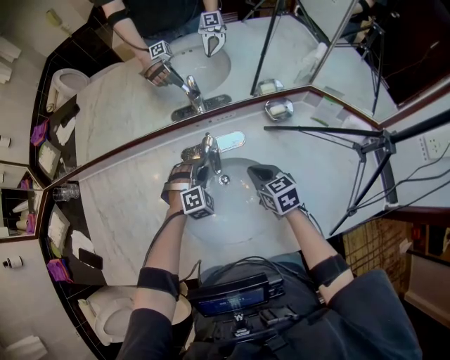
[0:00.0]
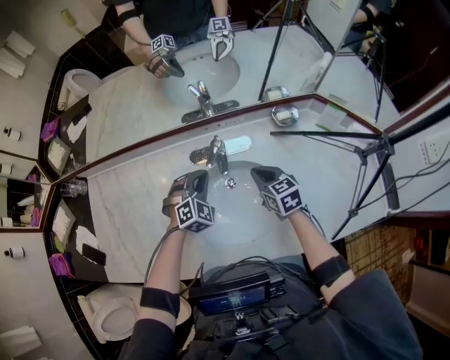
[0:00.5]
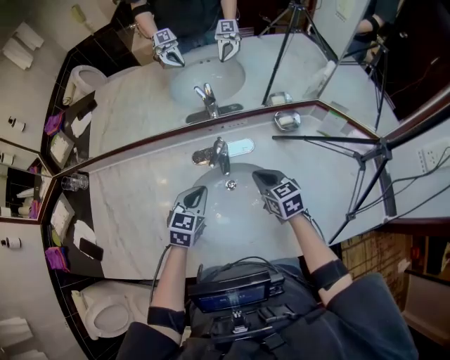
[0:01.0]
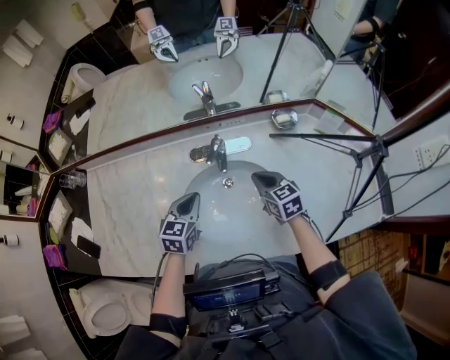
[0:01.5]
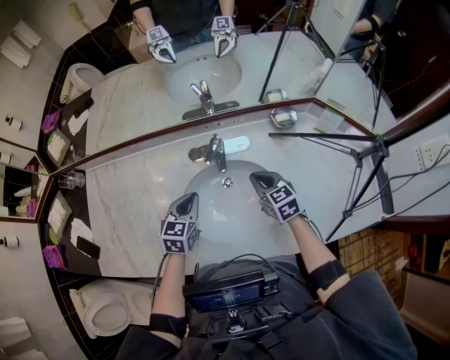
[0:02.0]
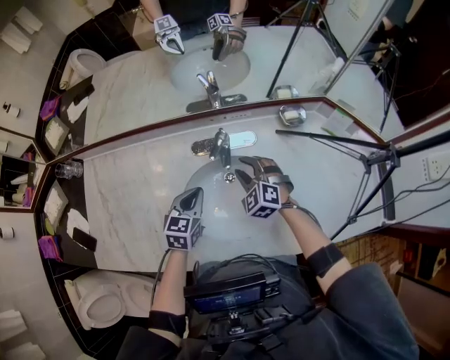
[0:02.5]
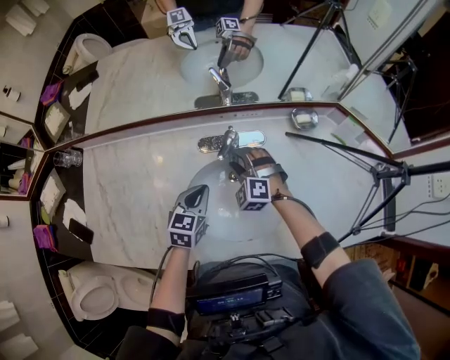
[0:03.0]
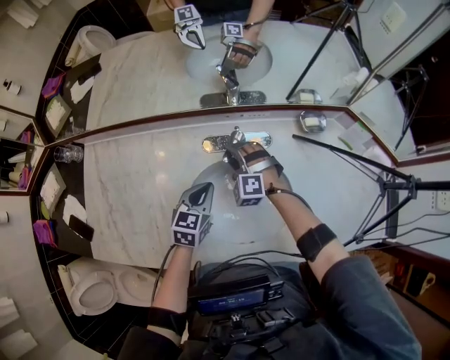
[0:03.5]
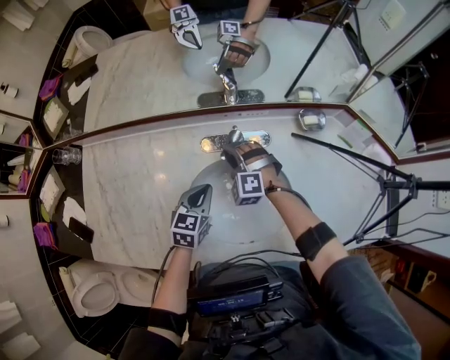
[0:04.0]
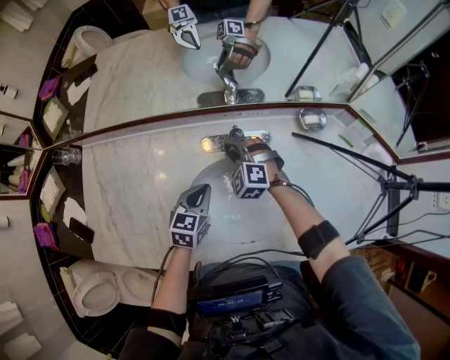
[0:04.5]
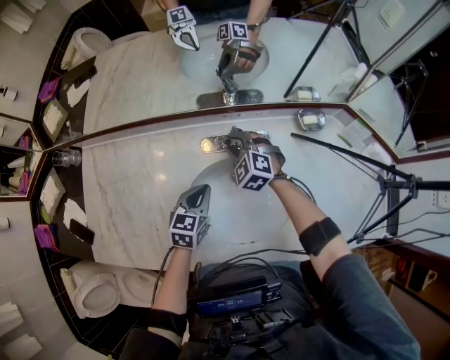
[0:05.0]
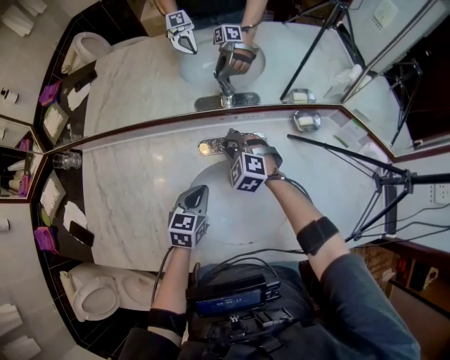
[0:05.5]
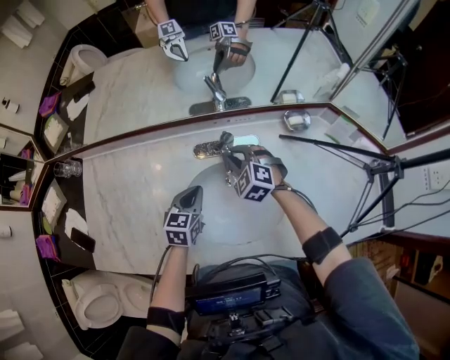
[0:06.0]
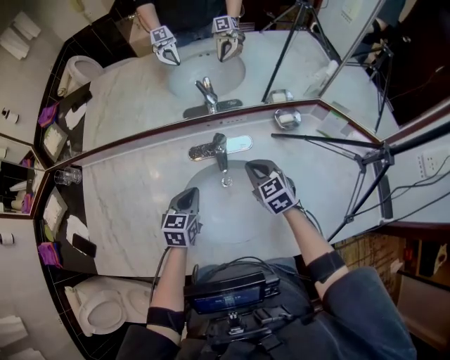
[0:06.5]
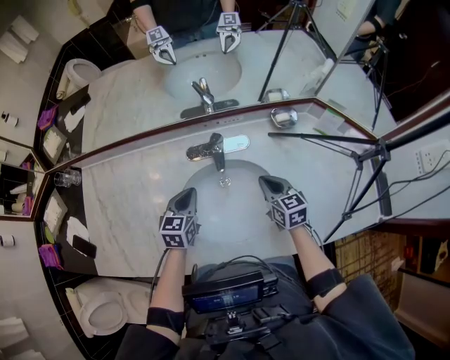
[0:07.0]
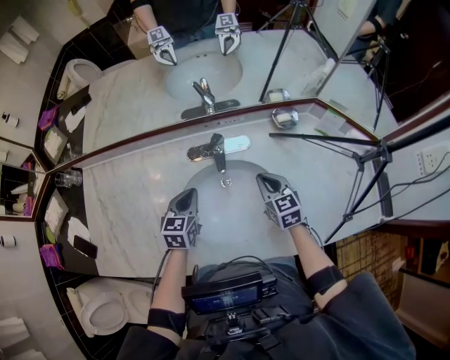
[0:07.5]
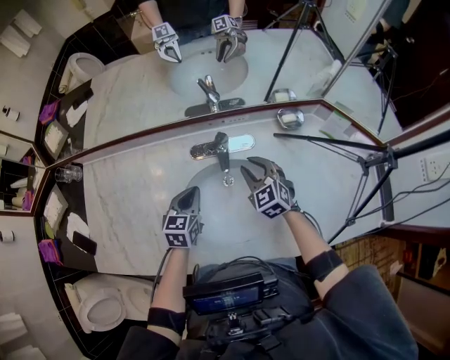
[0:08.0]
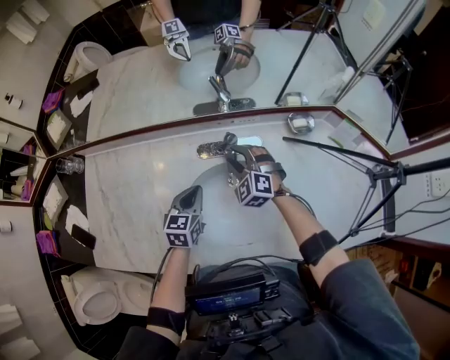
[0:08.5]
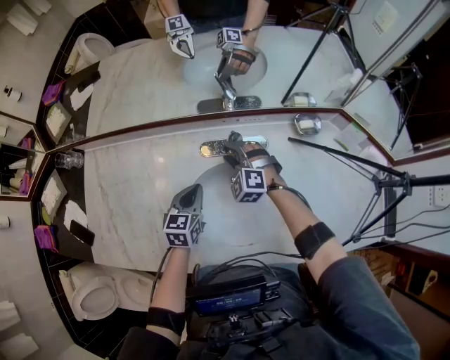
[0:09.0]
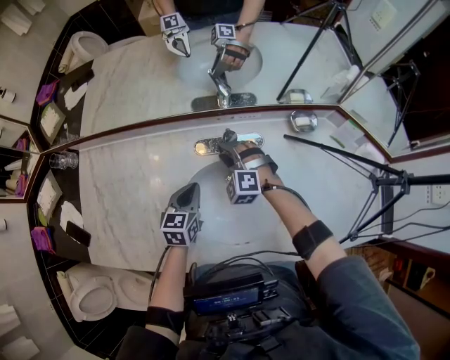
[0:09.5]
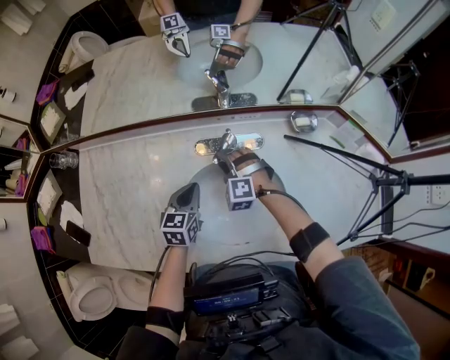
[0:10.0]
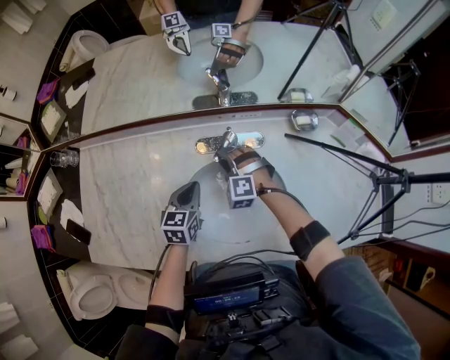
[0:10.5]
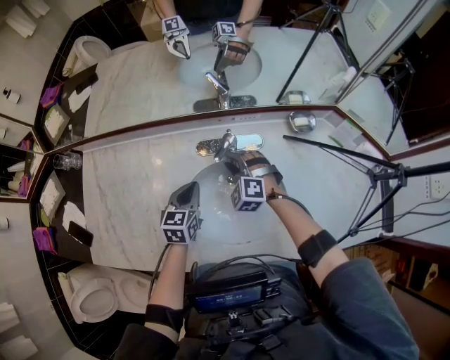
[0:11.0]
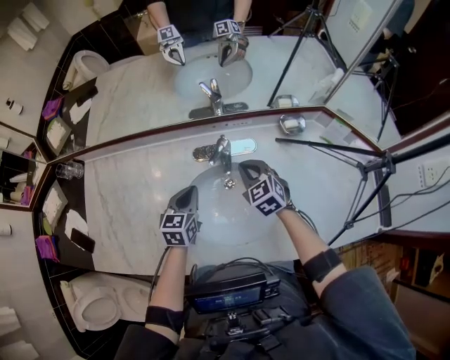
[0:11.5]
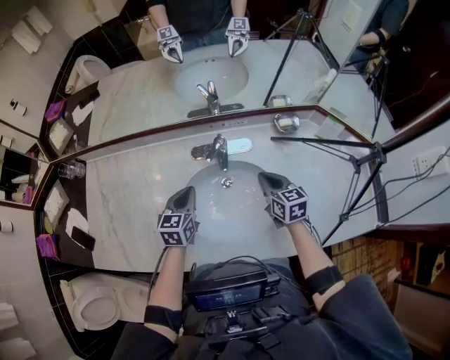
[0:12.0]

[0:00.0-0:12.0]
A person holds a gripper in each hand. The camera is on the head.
0:00.0 to 0:02.0: The left gripper moves backward, upward and to the left, about 15 cm, rotates around the line of its fingers by some 70 degrees, counterclockwise from behind, and closes.
0:02.0 to 0:04.0: The left gripper moves some 5 cm. Meanwhile the right gripper heads to the left and forward, covering roughly 20 cm, twists roughly 70 degrees counterclockwise, seen from behind, and opens its fingers.
0:04.0 to 0:06.0: The right gripper changes place by roughly 5 cm, and rotates some 20 degrees.
0:06.0 to 0:08.0: The right gripper shifts some 5 cm to the right, and swivels approximately 20 degrees.
0:08.0 to 0:10.0: The right gripper moves to the left and downward, approximately 15 cm, and rolls counterclockwise, seen from behind, by some 50 degrees.
0:10.0 to 0:12.0: The right gripper heads to the right, backward and upward, covering approximately 20 cm, twists some 80 degrees clockwise, seen from behind, and closes its fingers, while the left gripper changes place by some 5 cm.

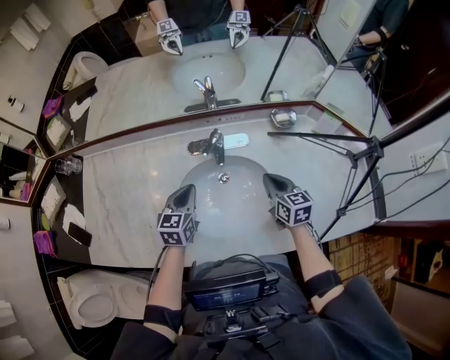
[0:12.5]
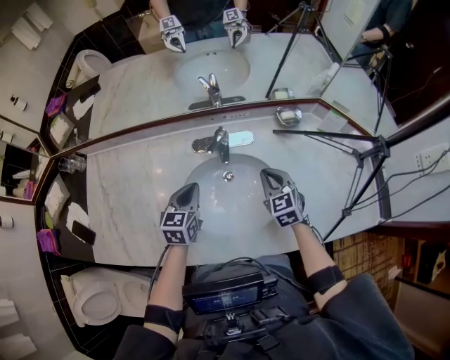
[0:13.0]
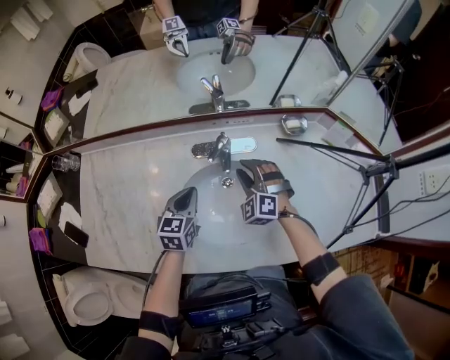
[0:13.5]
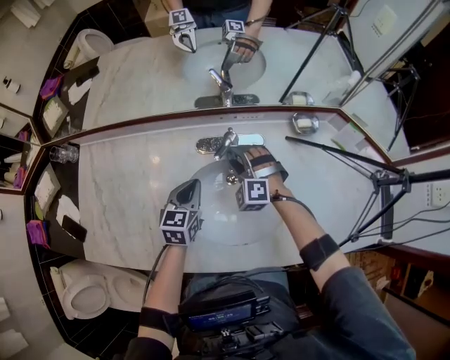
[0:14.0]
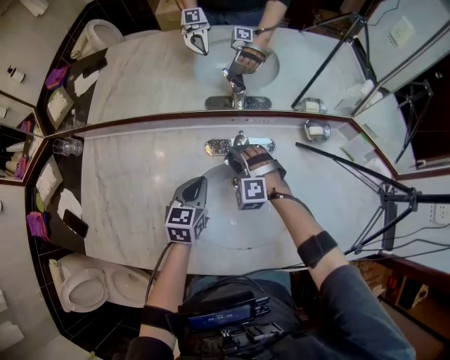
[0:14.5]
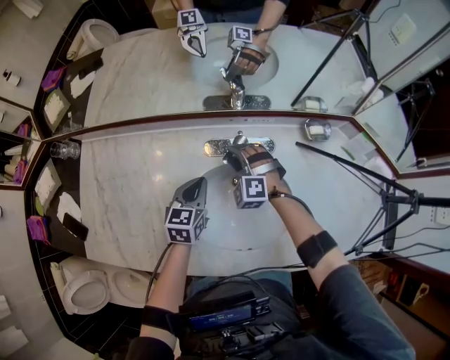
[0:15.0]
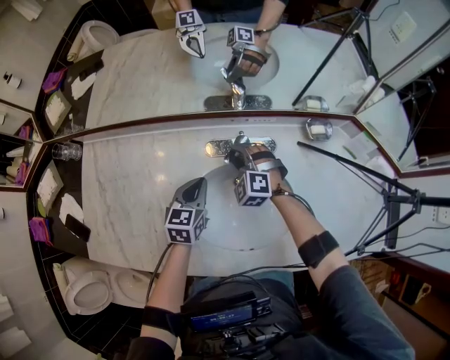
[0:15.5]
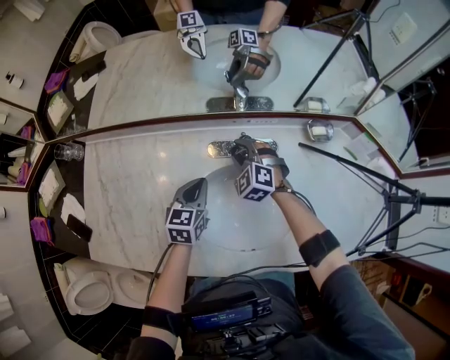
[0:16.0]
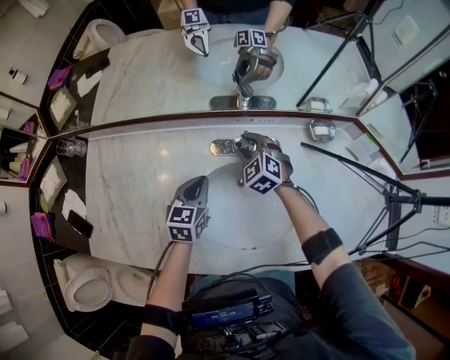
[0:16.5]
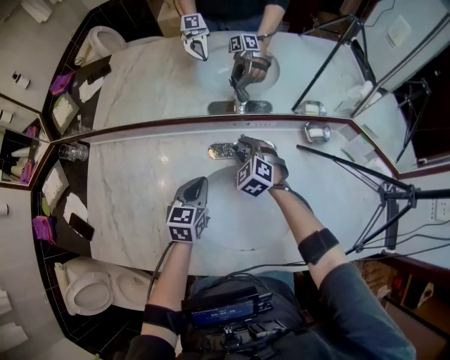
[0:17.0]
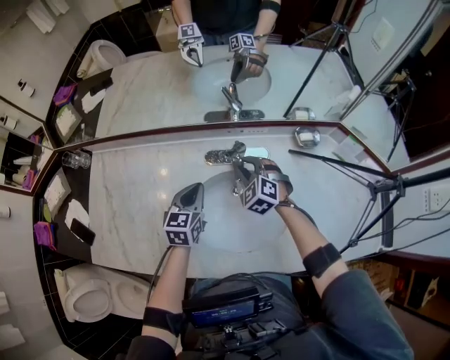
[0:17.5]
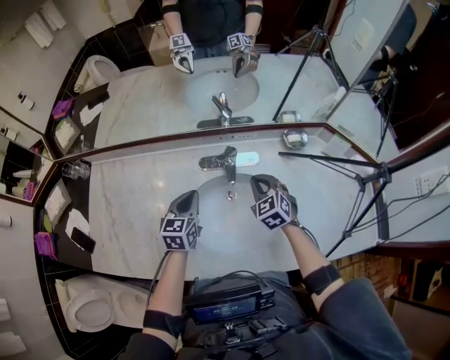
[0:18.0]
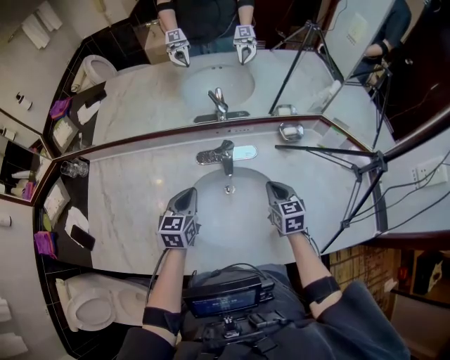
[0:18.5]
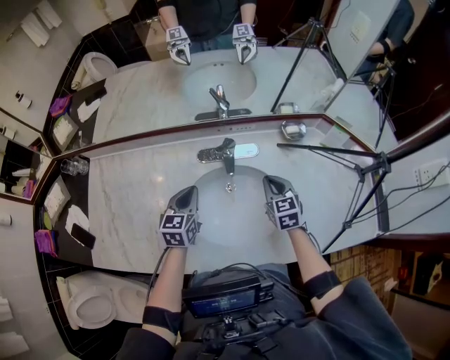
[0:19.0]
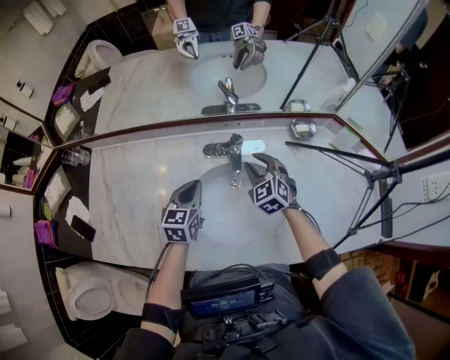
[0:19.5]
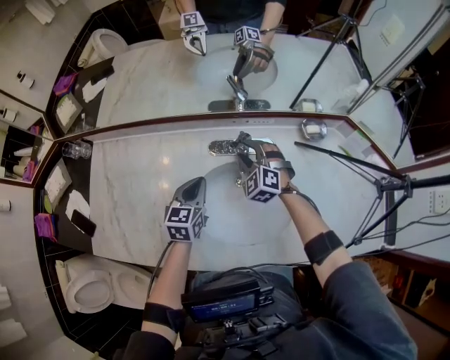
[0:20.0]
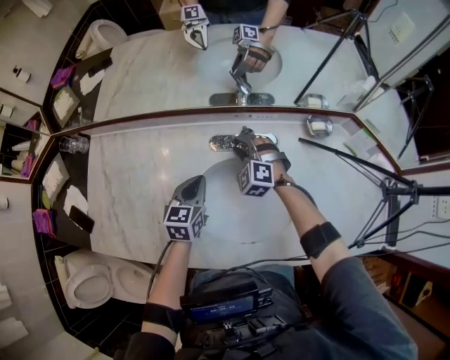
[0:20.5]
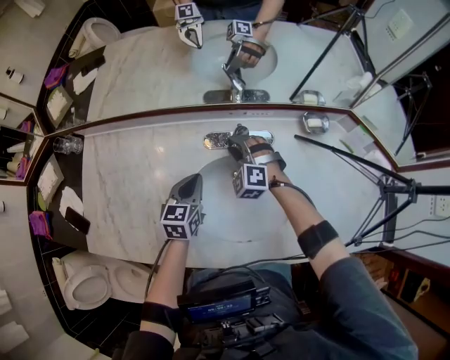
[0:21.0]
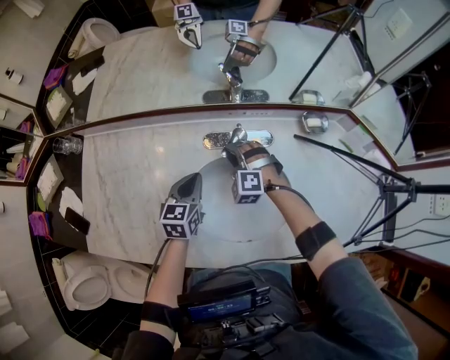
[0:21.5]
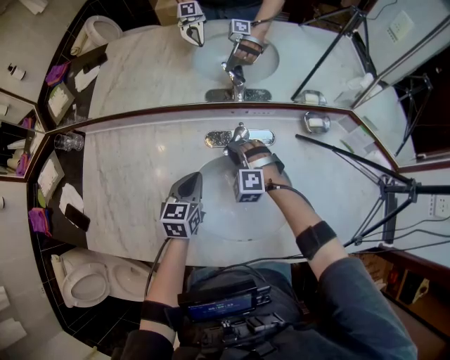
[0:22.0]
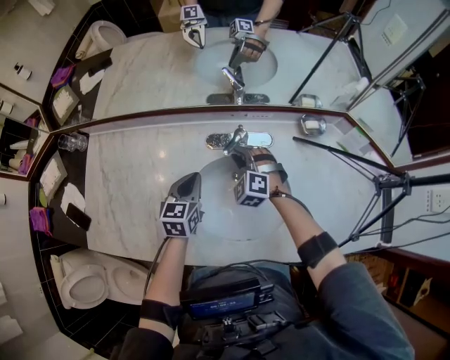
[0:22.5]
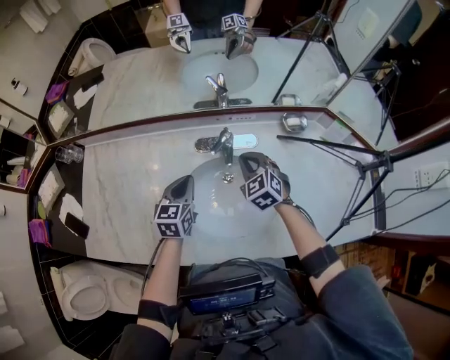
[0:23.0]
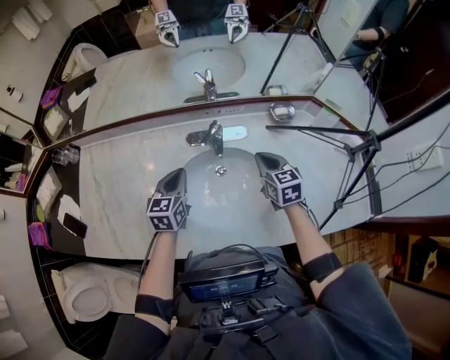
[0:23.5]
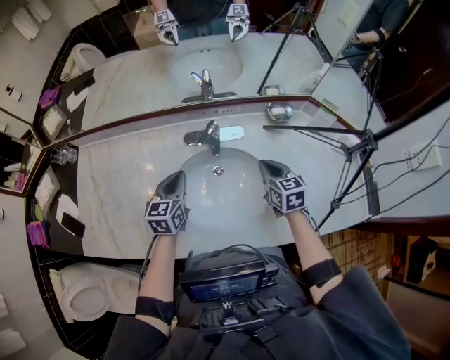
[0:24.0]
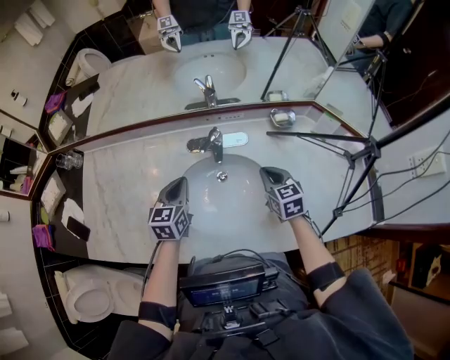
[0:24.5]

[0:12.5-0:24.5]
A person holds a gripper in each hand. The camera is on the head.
0:12.5 to 0:14.5: The left gripper moves forward, some 5 cm. Meanwhile the right gripper goes roughly 25 cm to the left and forward, rolls counterclockwise, seen from behind, by approximately 90 degrees, and opens.
0:14.5 to 0:16.5: The right gripper shifts by about 5 cm, and changes its angle by approximately 40 degrees.
0:16.5 to 0:18.5: The left gripper goes about 5 cm backward. Meanwhile the right gripper shifts some 25 cm backward and to the right, rotates around the line of its fingers by approximately 50 degrees, clockwise from behind, and closes its fingers.
0:18.5 to 0:20.5: The left gripper ends up roughly 5 cm from where it was. Meanwhile the right gripper is displaced to the left and forward by about 20 cm, rotates around the line of its fingers by roughly 70 degrees, counterclockwise from behind, and opens.
0:20.5 to 0:22.5: The grippers stay close to where they were, moving slightly.
0:22.5 to 0:24.5: The right gripper goes approximately 20 cm to the right and backward, and rolls clockwise, seen from behind, by about 60 degrees. Meanwhile the left gripper shifts by roughly 5 cm.

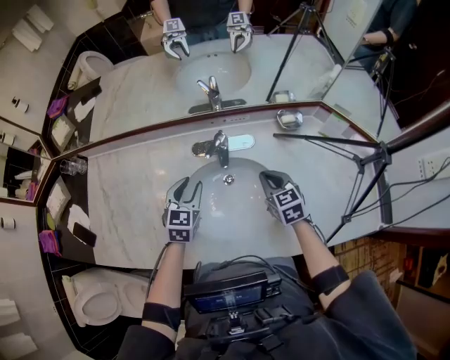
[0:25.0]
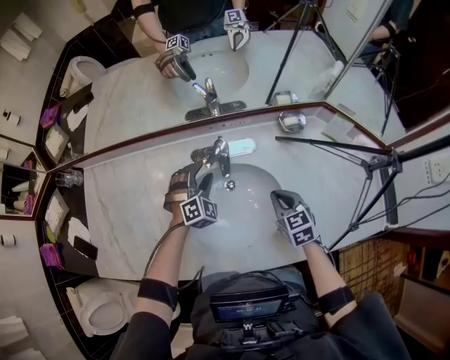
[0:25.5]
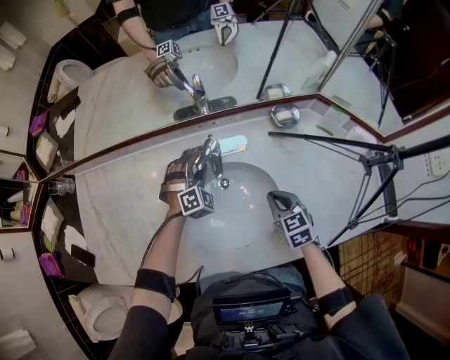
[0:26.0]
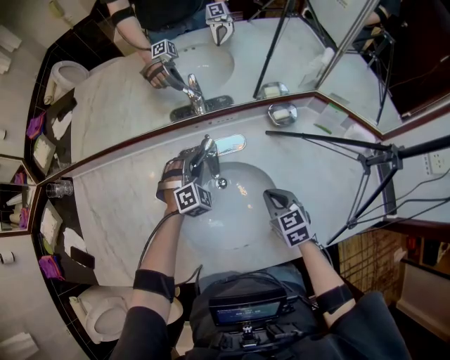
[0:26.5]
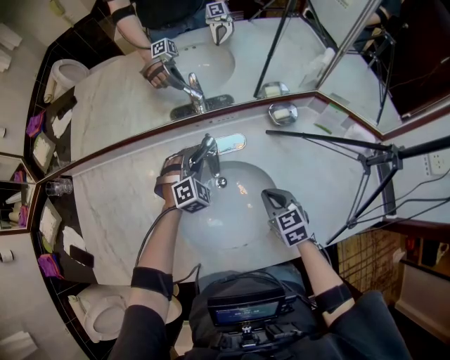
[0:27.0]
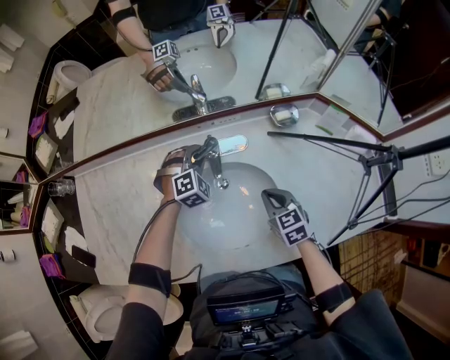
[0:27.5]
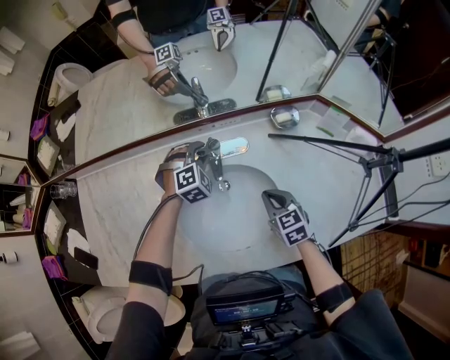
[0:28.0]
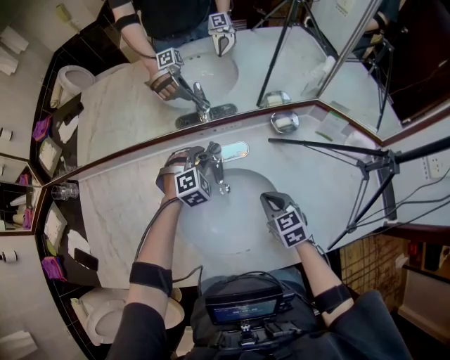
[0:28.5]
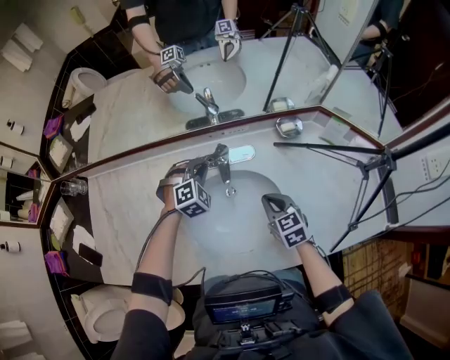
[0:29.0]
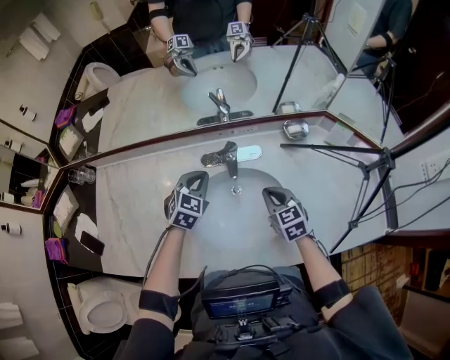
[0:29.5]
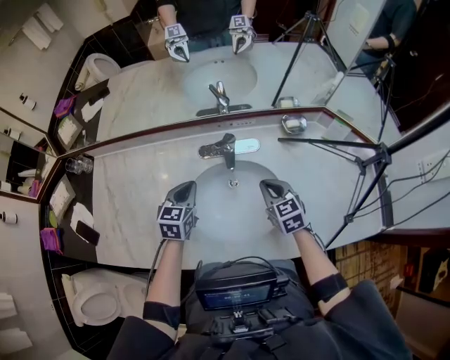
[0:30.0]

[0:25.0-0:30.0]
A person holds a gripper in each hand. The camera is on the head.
0:25.0 to 0:27.5: The left gripper goes roughly 15 cm forward, to the right and downward, twists approximately 60 degrees clockwise, seen from behind, and opens, then closes again. The right gripper shifts by some 5 cm.
0:27.5 to 0:30.0: The right gripper travels upward by some 5 cm; the left gripper moves backward, to the left and upward, roughly 20 cm, twists approximately 70 degrees counterclockwise, seen from behind, and closes.
